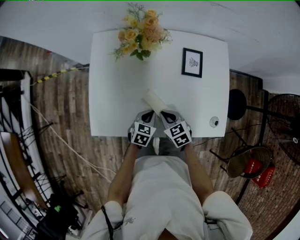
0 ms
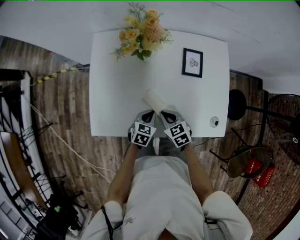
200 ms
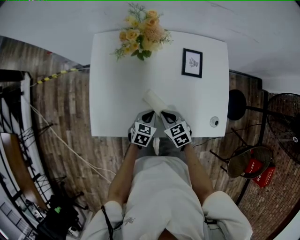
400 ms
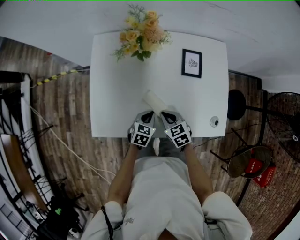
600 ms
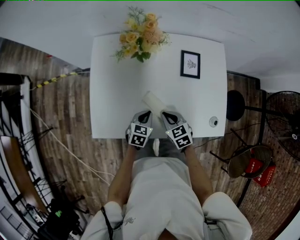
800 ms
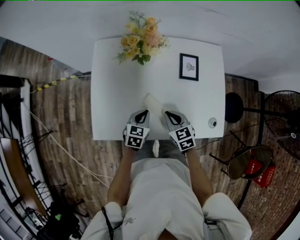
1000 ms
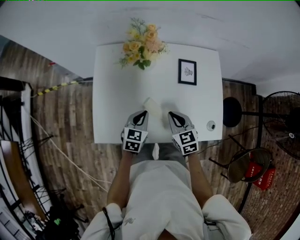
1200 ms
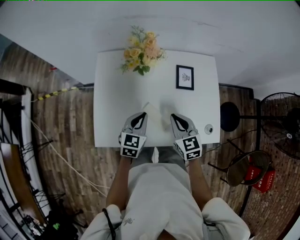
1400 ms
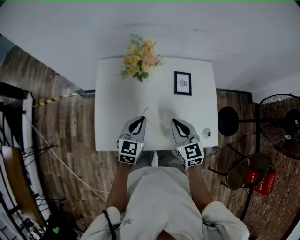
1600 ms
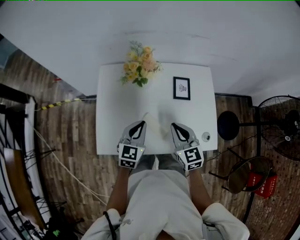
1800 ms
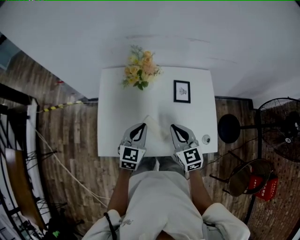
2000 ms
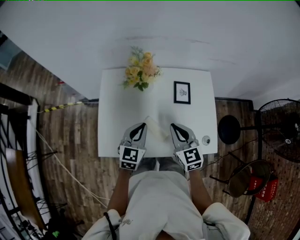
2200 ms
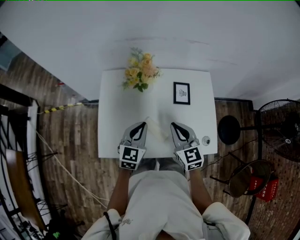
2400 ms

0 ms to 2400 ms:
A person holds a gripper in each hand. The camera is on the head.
0 ms to 1200 ms: The two grippers go some 10 cm upward.
1200 ms to 2400 ms: Both grippers move upward, some 15 cm.

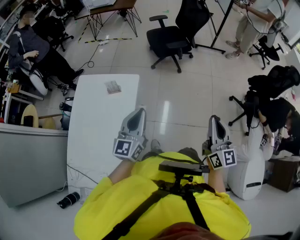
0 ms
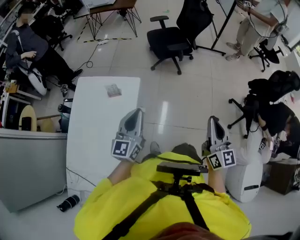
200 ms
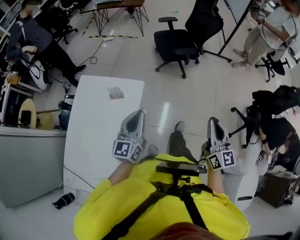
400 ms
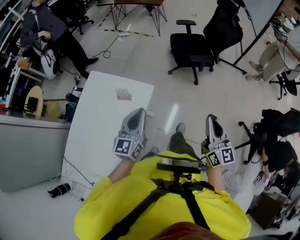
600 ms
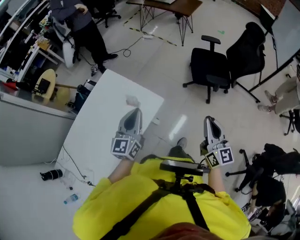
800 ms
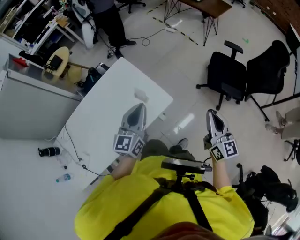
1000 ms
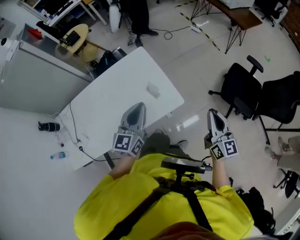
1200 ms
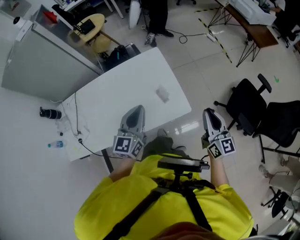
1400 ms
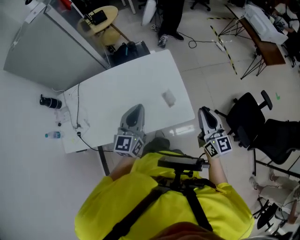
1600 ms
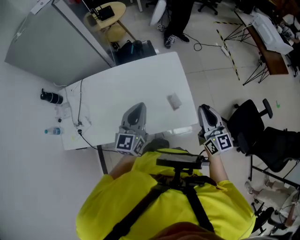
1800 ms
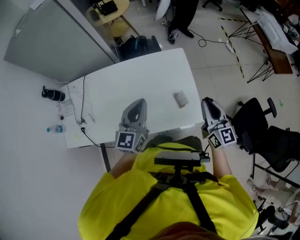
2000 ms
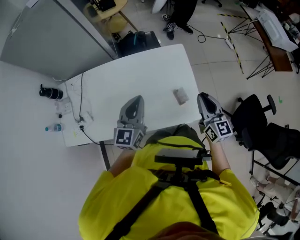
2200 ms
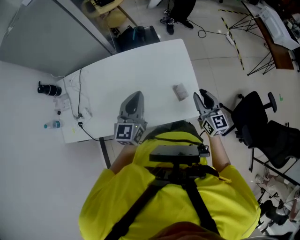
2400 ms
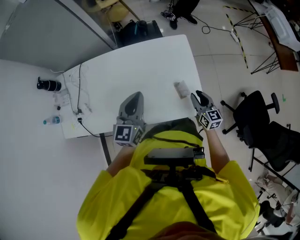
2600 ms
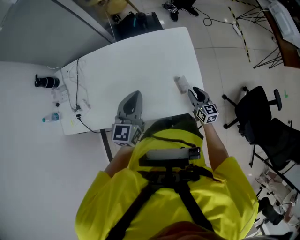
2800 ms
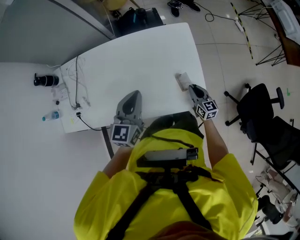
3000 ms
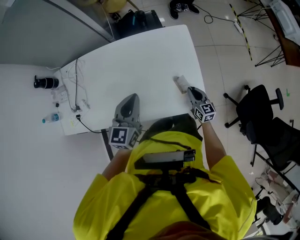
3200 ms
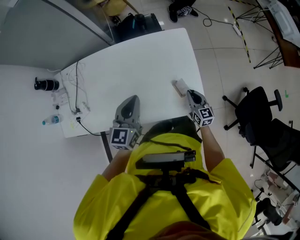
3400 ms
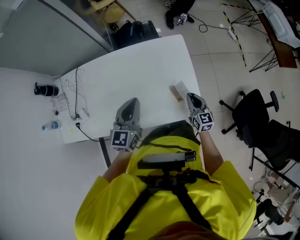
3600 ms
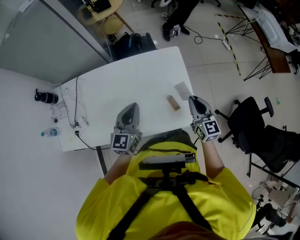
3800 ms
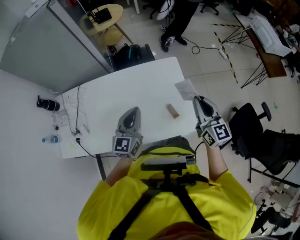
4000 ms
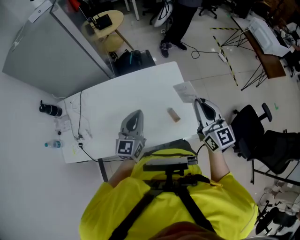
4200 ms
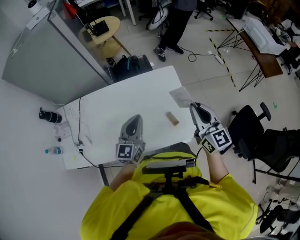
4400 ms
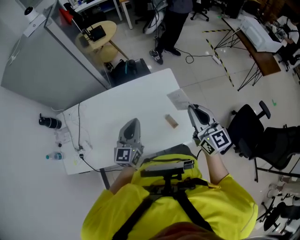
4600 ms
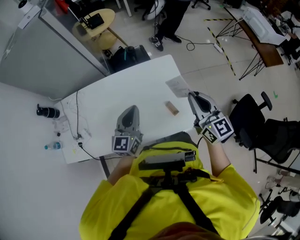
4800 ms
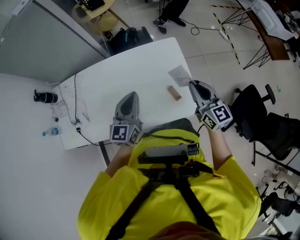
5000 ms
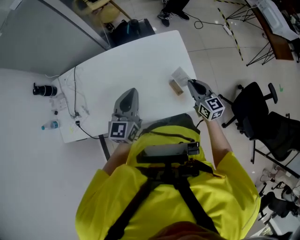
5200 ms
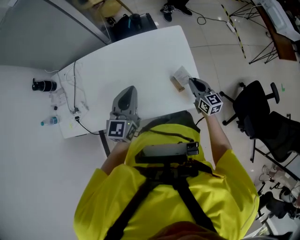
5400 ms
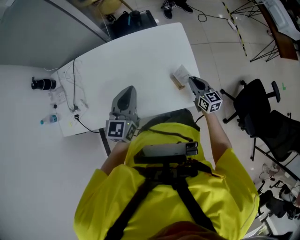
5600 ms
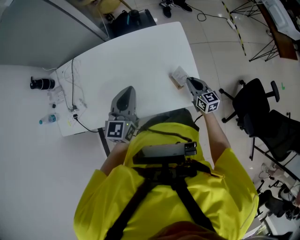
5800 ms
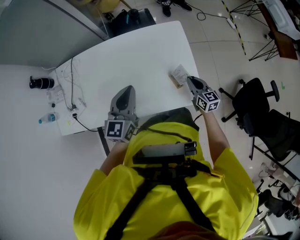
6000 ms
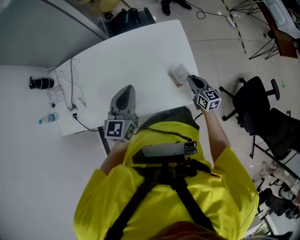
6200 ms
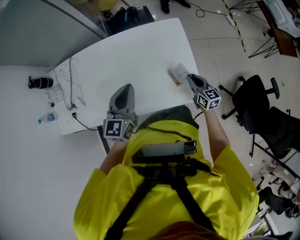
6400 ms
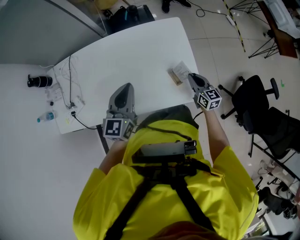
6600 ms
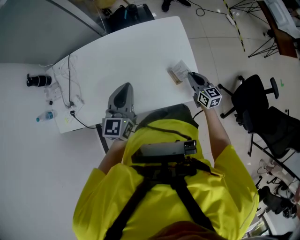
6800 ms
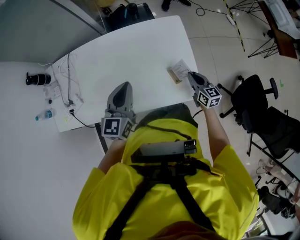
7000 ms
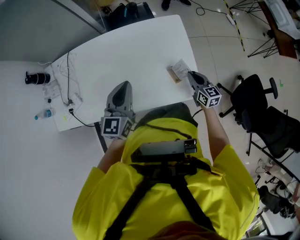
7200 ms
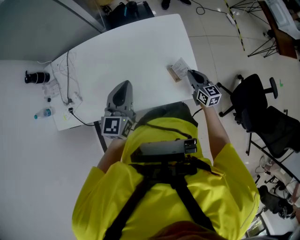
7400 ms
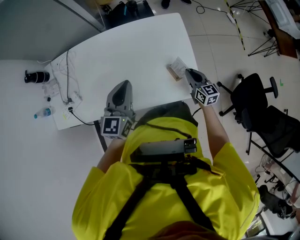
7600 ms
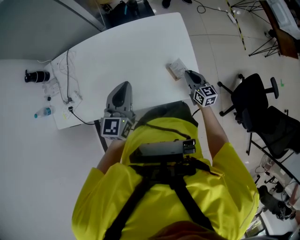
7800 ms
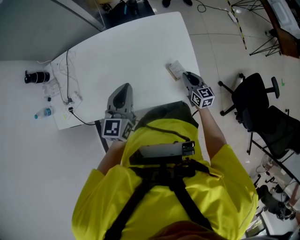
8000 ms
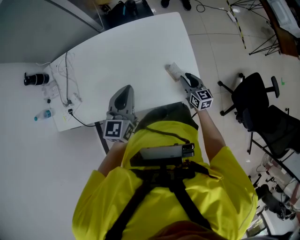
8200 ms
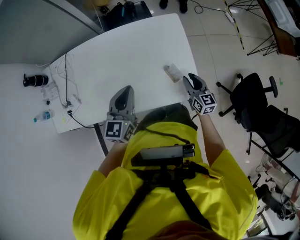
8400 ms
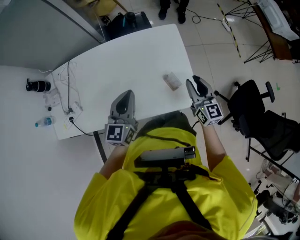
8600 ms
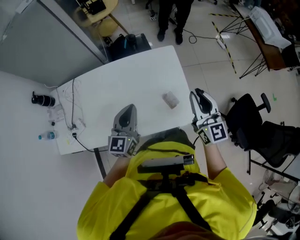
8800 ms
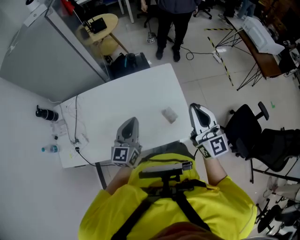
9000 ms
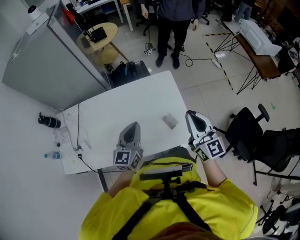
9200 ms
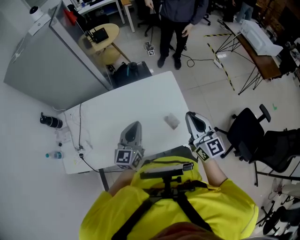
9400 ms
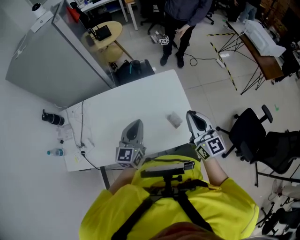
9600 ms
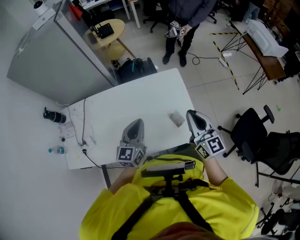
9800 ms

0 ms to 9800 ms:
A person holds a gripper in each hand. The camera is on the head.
0 ms to 1400 ms: The right gripper shifts by about 50 cm, and changes its angle by roughly 70 degrees, while the left gripper changes place by approximately 25 cm, and rotates some 60 degrees.
1400 ms to 2800 ms: The left gripper goes roughly 15 cm to the left, forward and downward, while the right gripper shifts about 35 cm downward, forward and to the left, and swivels some 30 degrees.
2800 ms to 4200 ms: The right gripper heads upward, covering roughly 35 cm, turns by about 30 degrees, and closes.
4200 ms to 5600 ms: The right gripper shifts about 30 cm downward, and swivels about 30 degrees.
5600 ms to 7000 ms: The grippers make only small movements.
7000 ms to 8400 ms: The right gripper opens.
8400 ms to 9800 ms: The left gripper shifts roughly 5 cm upward; the right gripper shifts approximately 25 cm upward, rotates some 20 degrees, and closes up.

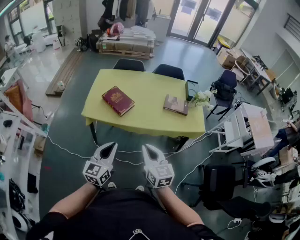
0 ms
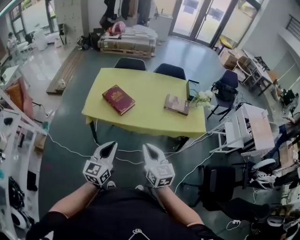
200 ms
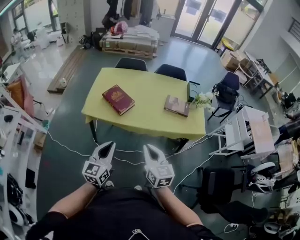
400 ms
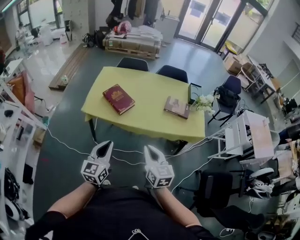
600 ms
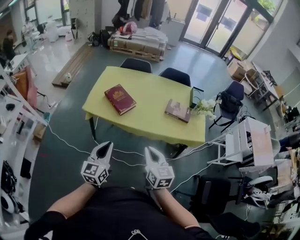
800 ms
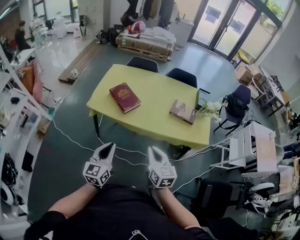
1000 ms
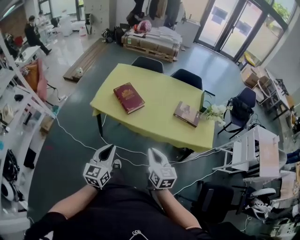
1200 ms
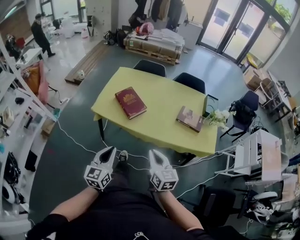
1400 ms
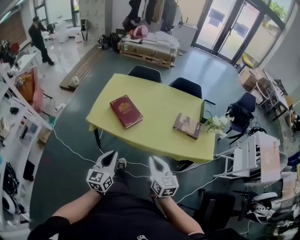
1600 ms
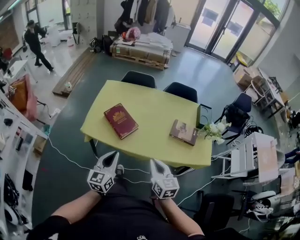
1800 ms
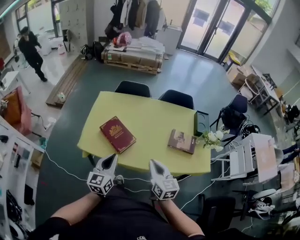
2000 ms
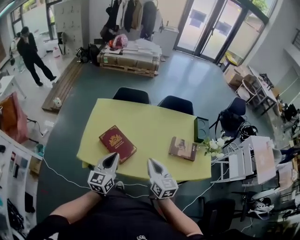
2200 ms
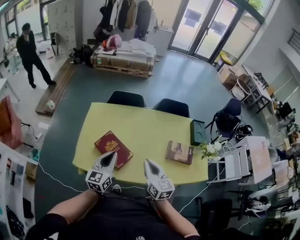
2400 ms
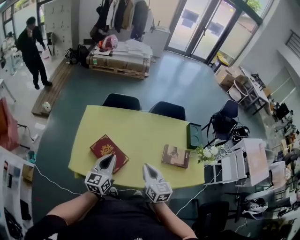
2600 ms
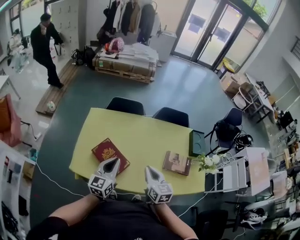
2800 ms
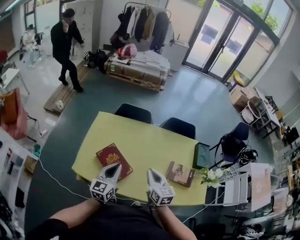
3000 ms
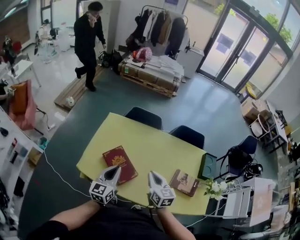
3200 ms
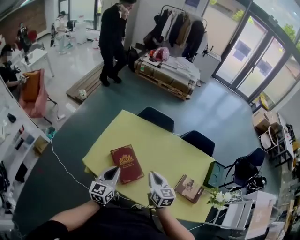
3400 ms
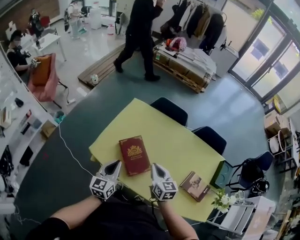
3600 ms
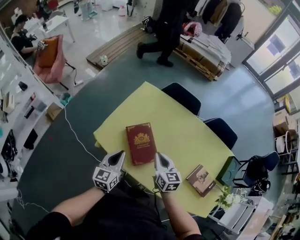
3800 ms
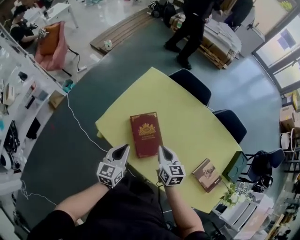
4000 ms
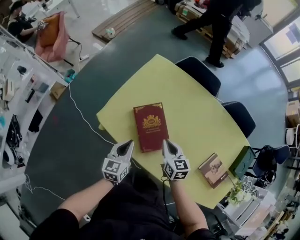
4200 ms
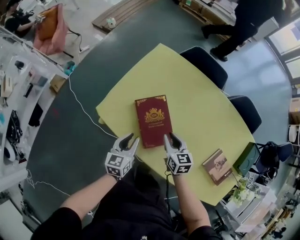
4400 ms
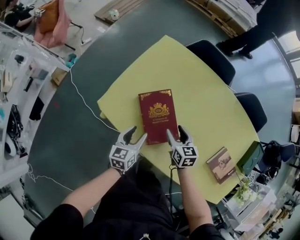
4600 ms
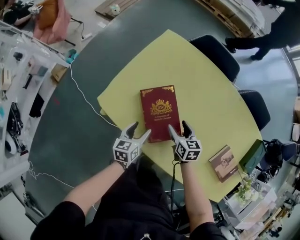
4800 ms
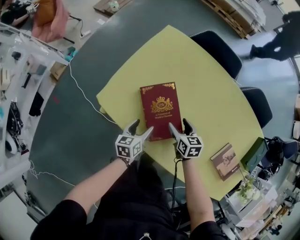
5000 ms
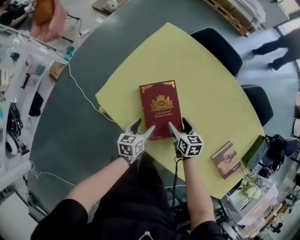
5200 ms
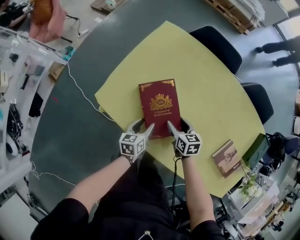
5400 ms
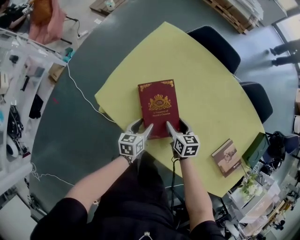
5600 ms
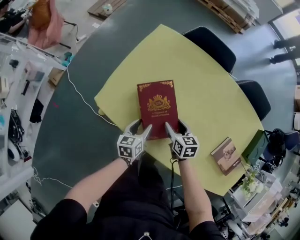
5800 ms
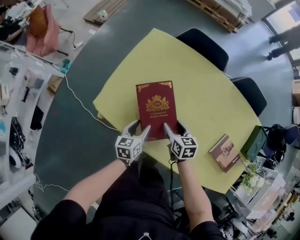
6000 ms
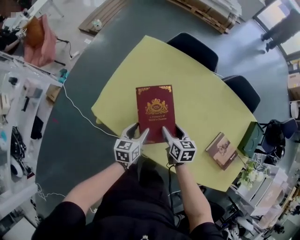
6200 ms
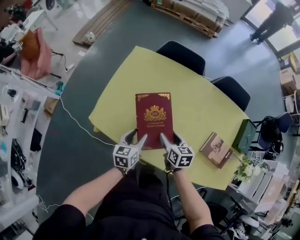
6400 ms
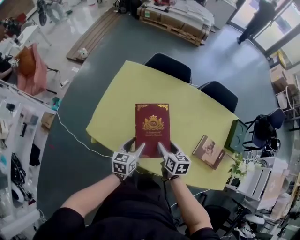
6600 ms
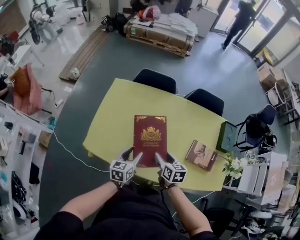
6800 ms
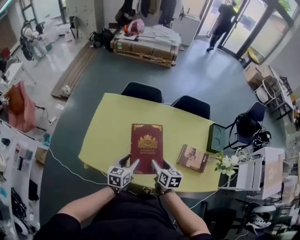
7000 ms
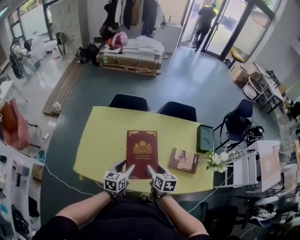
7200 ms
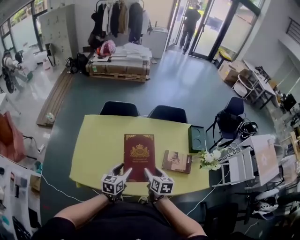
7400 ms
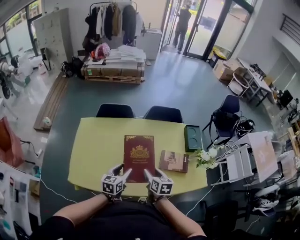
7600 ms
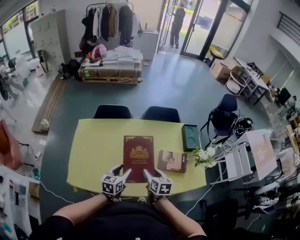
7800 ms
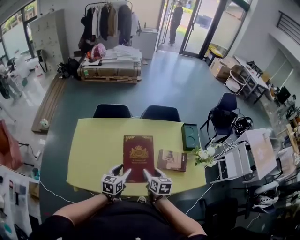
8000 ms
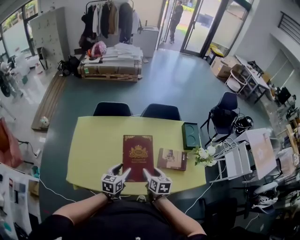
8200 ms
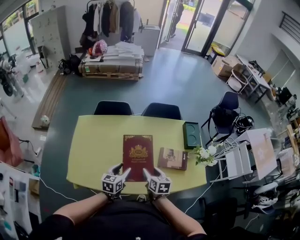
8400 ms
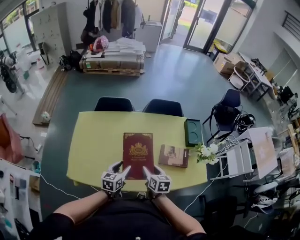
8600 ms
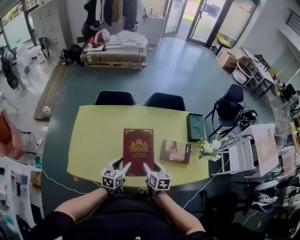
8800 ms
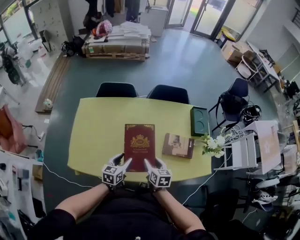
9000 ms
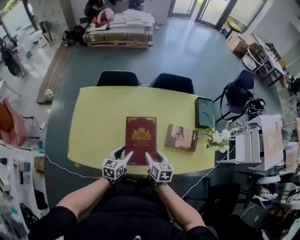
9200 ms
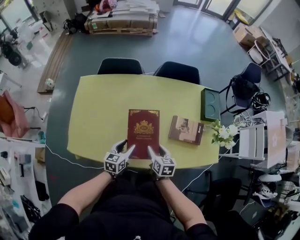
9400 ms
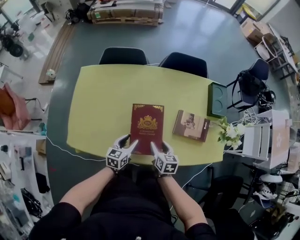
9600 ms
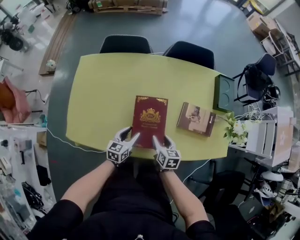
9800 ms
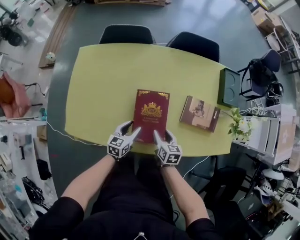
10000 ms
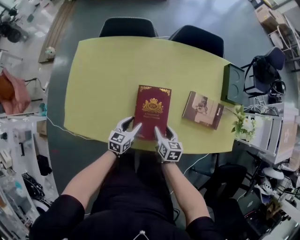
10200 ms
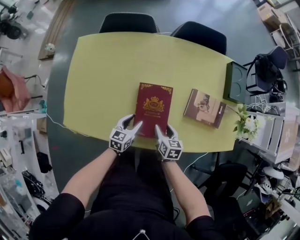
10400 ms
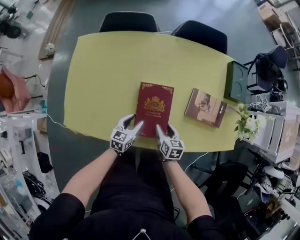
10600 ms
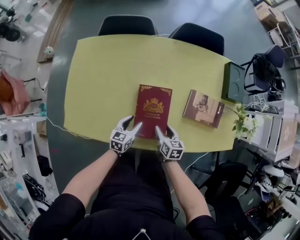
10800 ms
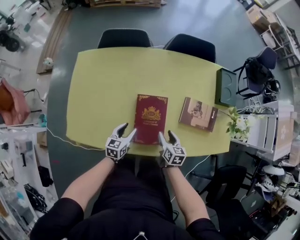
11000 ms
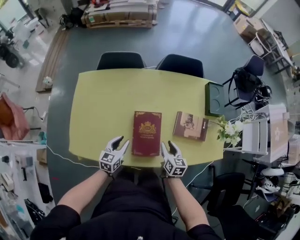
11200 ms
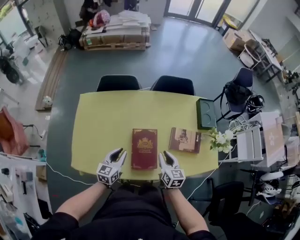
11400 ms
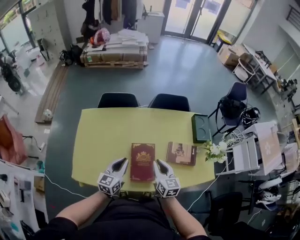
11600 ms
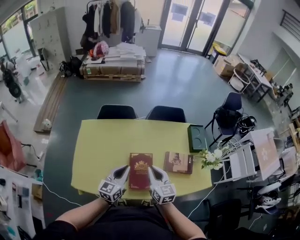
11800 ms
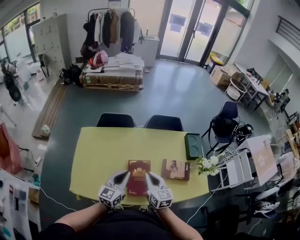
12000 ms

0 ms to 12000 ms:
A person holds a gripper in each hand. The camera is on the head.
0 ms to 1600 ms: The right gripper travels forward, downward and to the right by approximately 15 cm; the left gripper moves forward and downward, roughly 10 cm.
1600 ms to 3000 ms: The two grippers go some 35 cm forward.
3000 ms to 4400 ms: Both grippers move downward, roughly 25 cm. The left gripper turns by some 40 degrees. The right gripper rotates approximately 30 degrees.
4400 ms to 6000 ms: The left gripper moves downward, about 5 cm, and opens up. Meanwhile the right gripper opens up.
6000 ms to 7600 ms: The left gripper shifts roughly 25 cm upward, and rotates approximately 40 degrees. The right gripper ends up roughly 35 cm from where it was, and swivels approximately 40 degrees.
7600 ms to 9000 ms: Both grippers travel together downward, roughly 5 cm.
9000 ms to 10400 ms: The two grippers go some 20 cm downward.
10400 ms to 12000 ms: The grippers both shift upward by some 35 cm. The left gripper swivels some 30 degrees, and closes its fingers, while the right gripper changes its angle by about 30 degrees, and closes its fingers.
